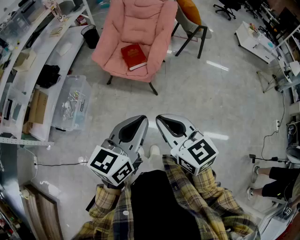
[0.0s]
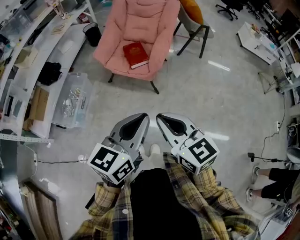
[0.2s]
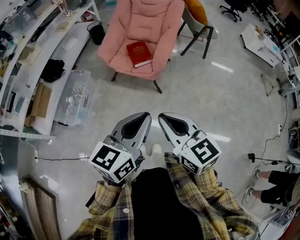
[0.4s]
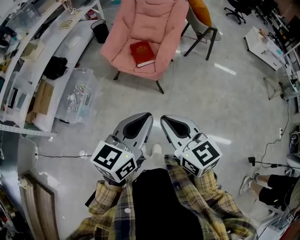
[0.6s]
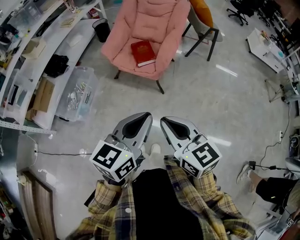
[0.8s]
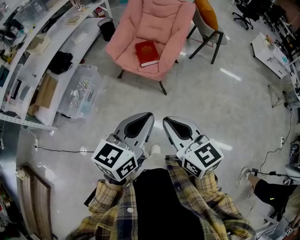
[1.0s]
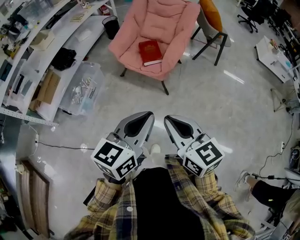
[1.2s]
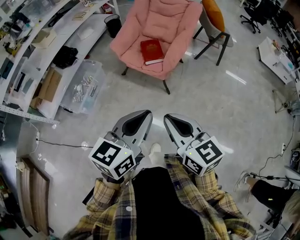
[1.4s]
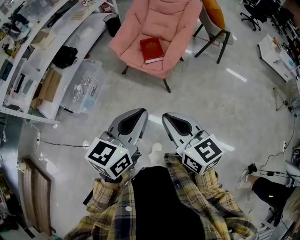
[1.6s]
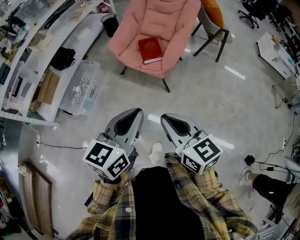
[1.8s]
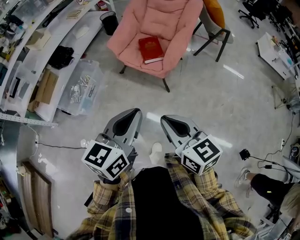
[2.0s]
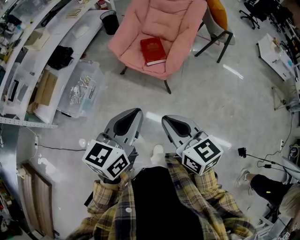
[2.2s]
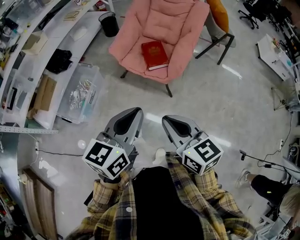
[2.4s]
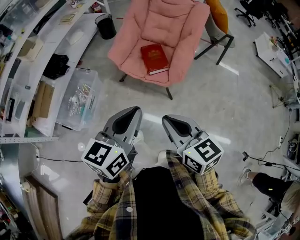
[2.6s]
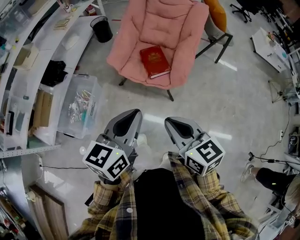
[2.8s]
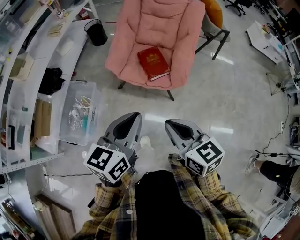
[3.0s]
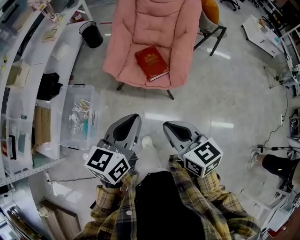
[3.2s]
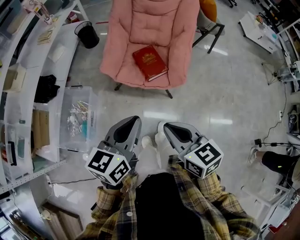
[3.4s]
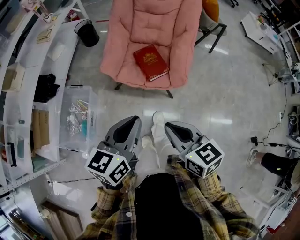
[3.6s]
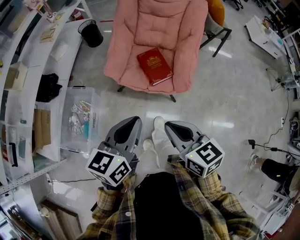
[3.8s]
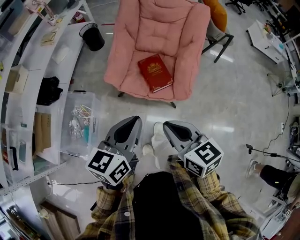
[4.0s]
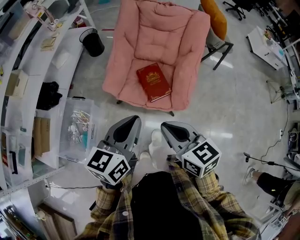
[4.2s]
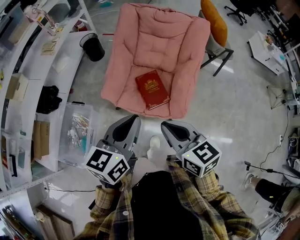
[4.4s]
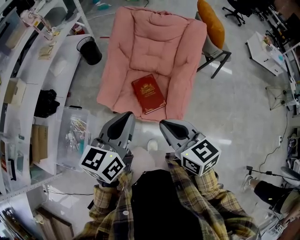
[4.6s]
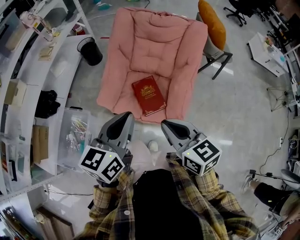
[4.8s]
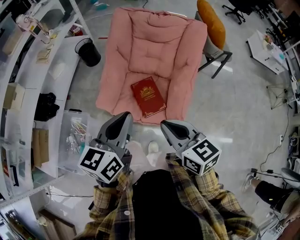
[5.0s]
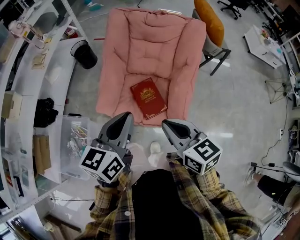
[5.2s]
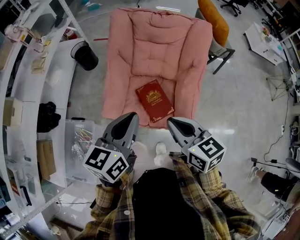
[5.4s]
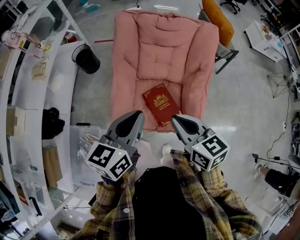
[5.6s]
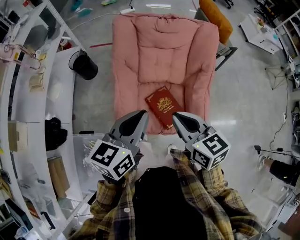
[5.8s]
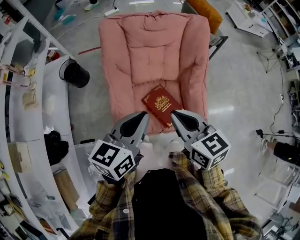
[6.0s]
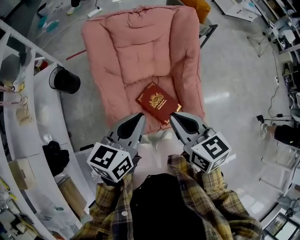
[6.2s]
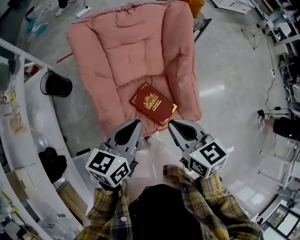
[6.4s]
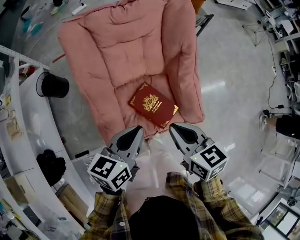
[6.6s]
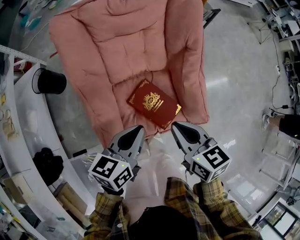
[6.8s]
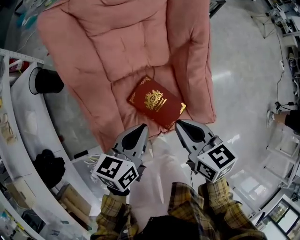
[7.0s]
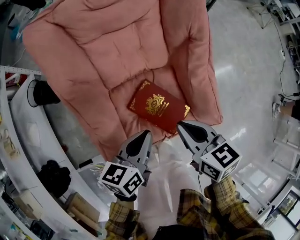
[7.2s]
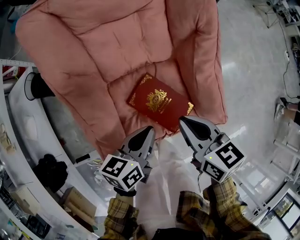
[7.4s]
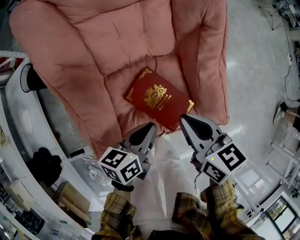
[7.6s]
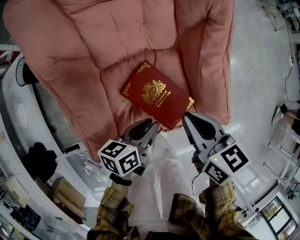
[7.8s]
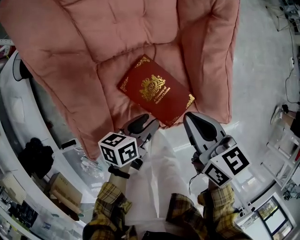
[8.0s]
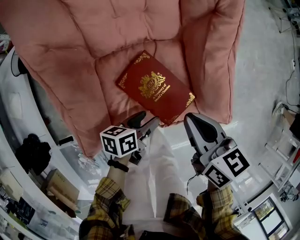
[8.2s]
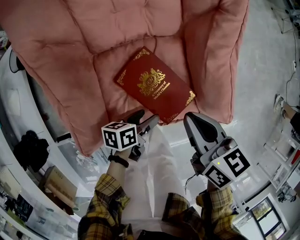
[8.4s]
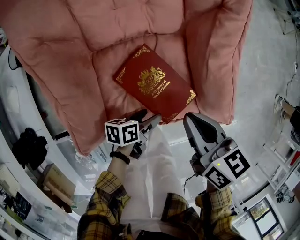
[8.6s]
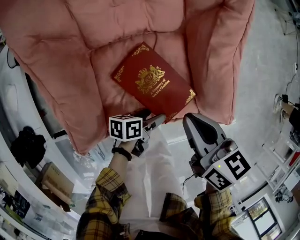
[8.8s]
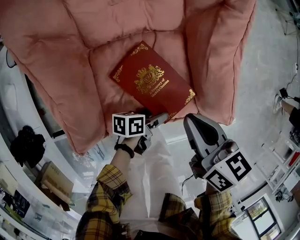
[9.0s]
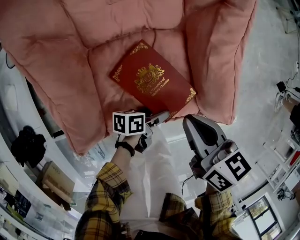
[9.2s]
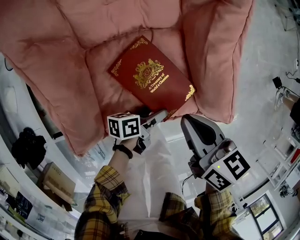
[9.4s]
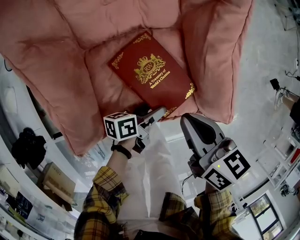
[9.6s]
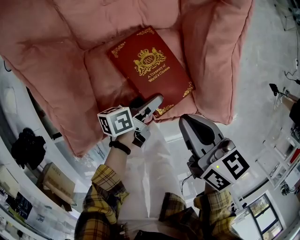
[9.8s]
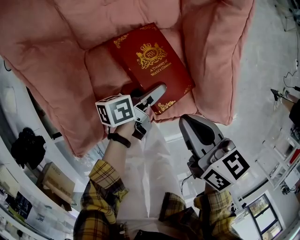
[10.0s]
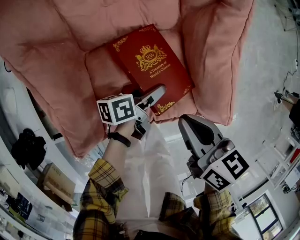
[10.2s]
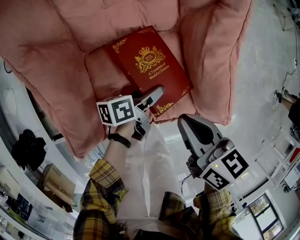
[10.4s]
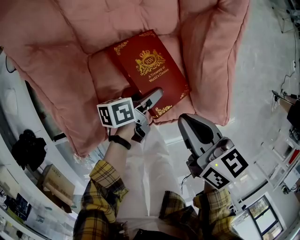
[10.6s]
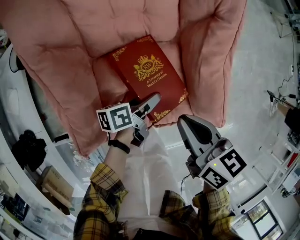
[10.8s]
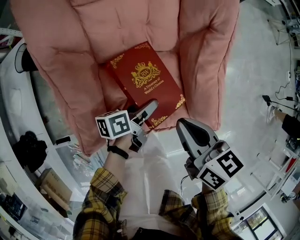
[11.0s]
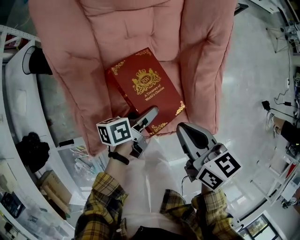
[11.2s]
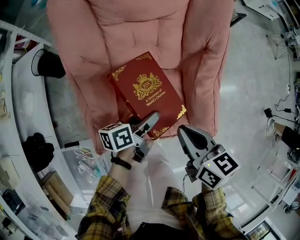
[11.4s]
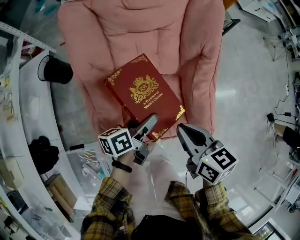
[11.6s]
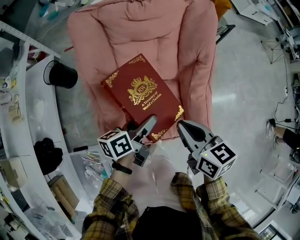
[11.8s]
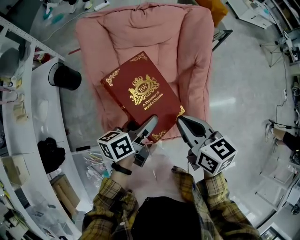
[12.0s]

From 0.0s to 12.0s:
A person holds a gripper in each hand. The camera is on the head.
From 0.0s to 1.6s: There are only small adjustments of the grippers.
From 1.6s to 3.0s: The two grippers go roughly 25 cm forward and to the left.
From 3.0s to 4.4s: Both grippers move forward, about 20 cm.
From 4.4s to 6.0s: The left gripper moves approximately 25 cm, and rotates some 30 degrees. Meanwhile the right gripper ends up about 25 cm from where it was, and turns by roughly 20 degrees.
From 6.0s to 7.6s: Both grippers travel together downward, some 30 cm. The right gripper rotates approximately 20 degrees, while the left gripper rotates approximately 30 degrees.
From 7.6s to 9.0s: The left gripper travels downward and to the right by approximately 20 cm, turns by roughly 30 degrees, and opens. The right gripper goes roughly 5 cm downward.
From 9.0s to 10.4s: The left gripper moves forward and upward, approximately 15 cm.
From 10.4s to 12.0s: The two grippers go some 25 cm upward. The left gripper turns by roughly 20 degrees.

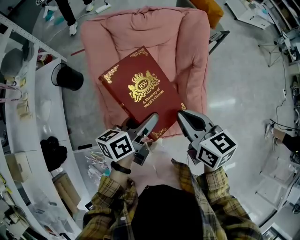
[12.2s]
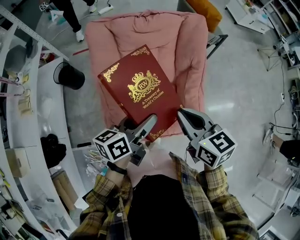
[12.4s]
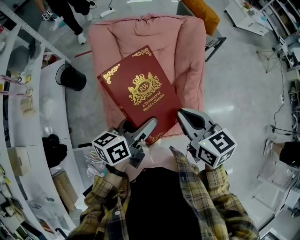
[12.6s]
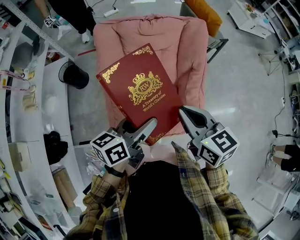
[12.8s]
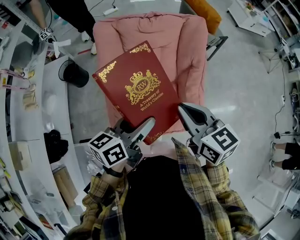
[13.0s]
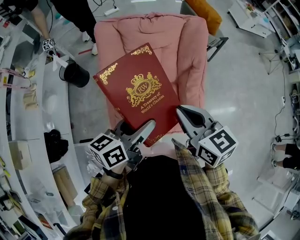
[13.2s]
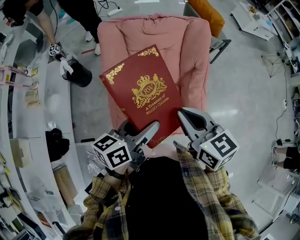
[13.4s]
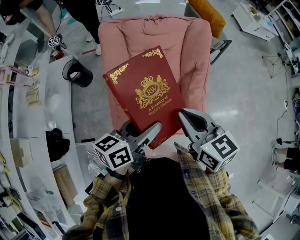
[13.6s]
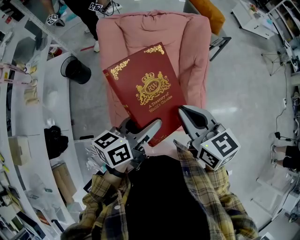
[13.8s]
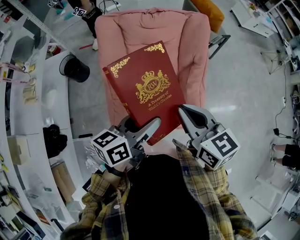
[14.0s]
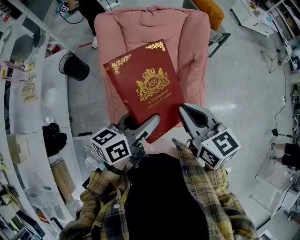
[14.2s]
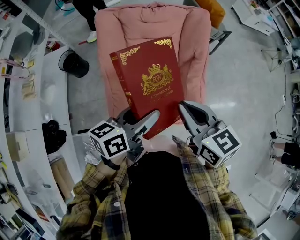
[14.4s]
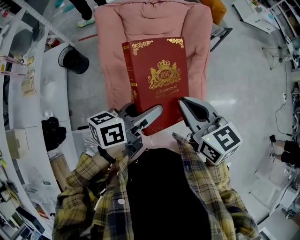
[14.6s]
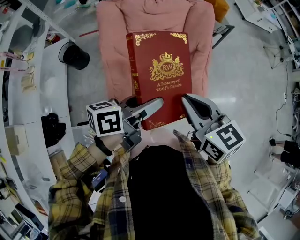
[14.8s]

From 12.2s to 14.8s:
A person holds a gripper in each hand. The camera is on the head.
From 12.2s to 13.4s: The left gripper travels upward and backward by some 10 cm, while the right gripper heads upward, covering about 10 cm.
From 13.4s to 14.8s: There are only small adjustments of the grippers.

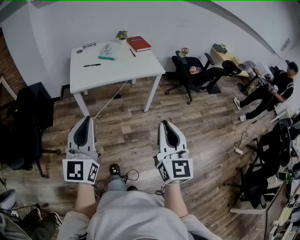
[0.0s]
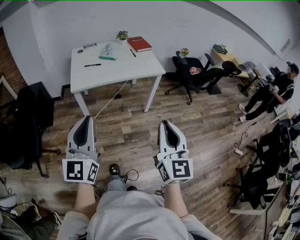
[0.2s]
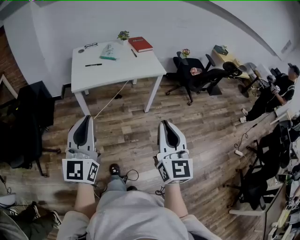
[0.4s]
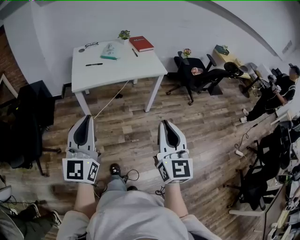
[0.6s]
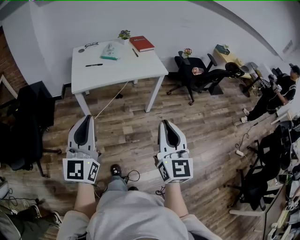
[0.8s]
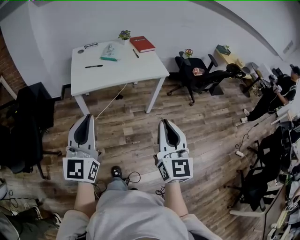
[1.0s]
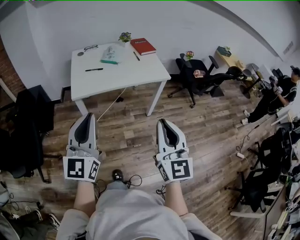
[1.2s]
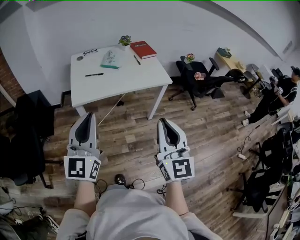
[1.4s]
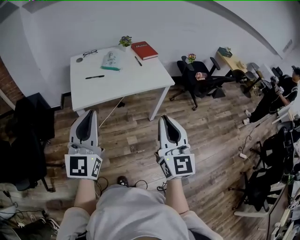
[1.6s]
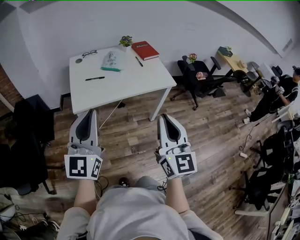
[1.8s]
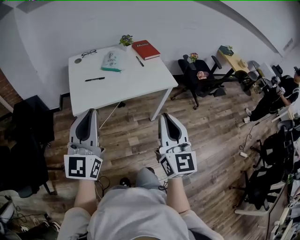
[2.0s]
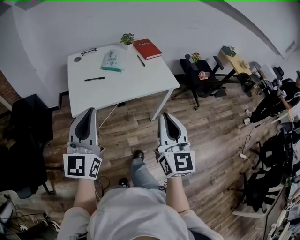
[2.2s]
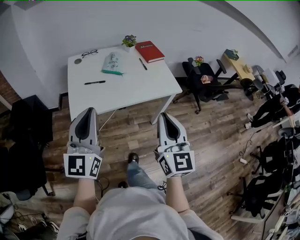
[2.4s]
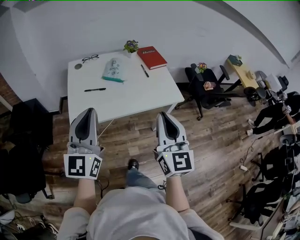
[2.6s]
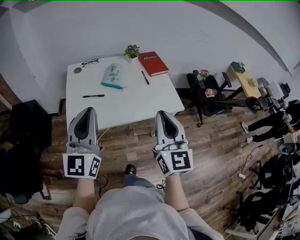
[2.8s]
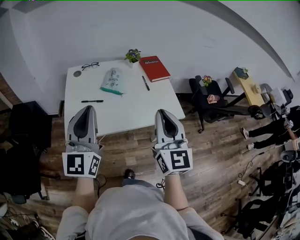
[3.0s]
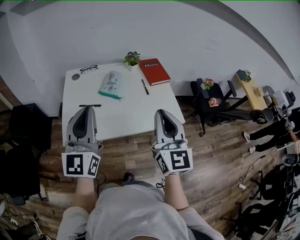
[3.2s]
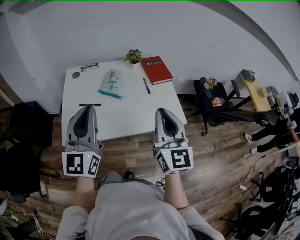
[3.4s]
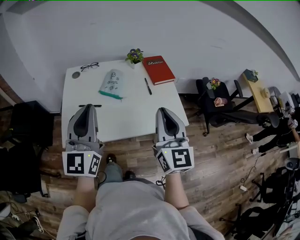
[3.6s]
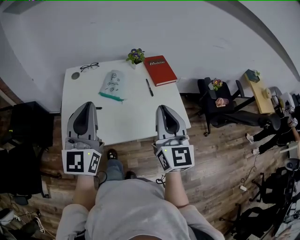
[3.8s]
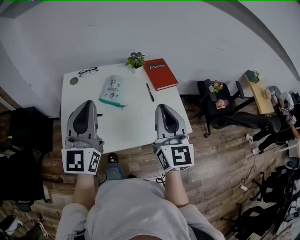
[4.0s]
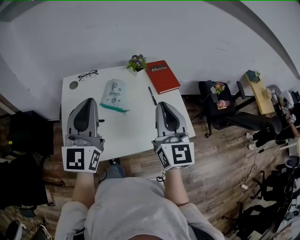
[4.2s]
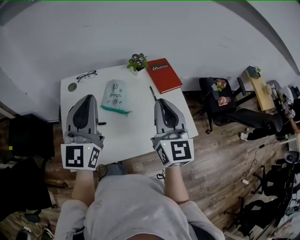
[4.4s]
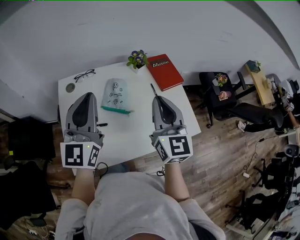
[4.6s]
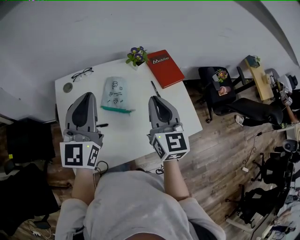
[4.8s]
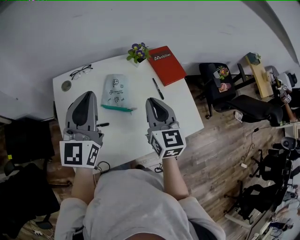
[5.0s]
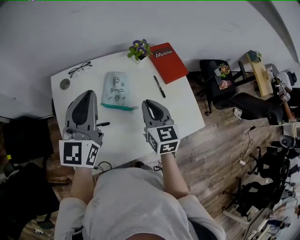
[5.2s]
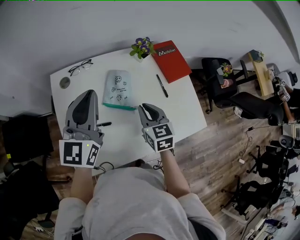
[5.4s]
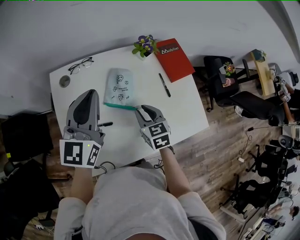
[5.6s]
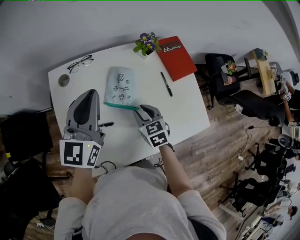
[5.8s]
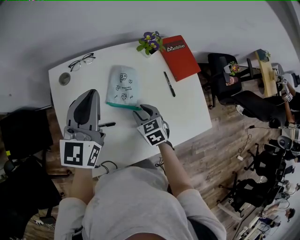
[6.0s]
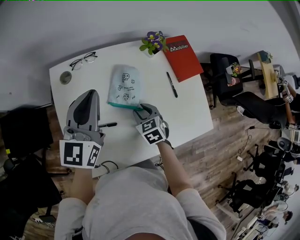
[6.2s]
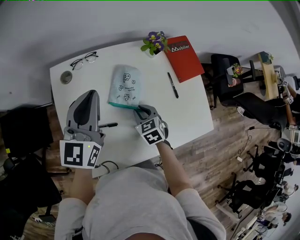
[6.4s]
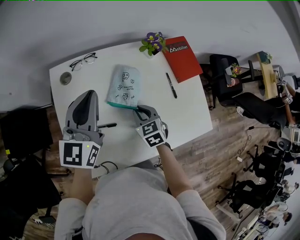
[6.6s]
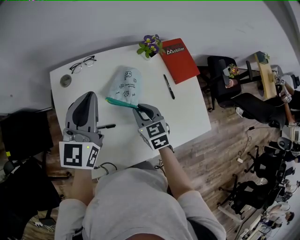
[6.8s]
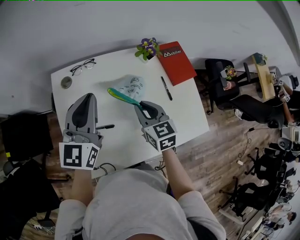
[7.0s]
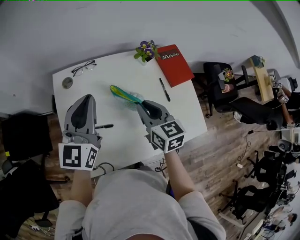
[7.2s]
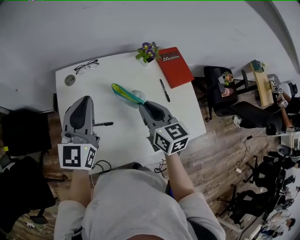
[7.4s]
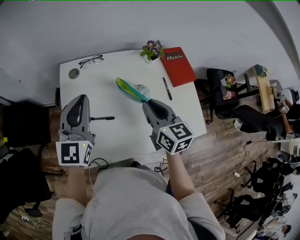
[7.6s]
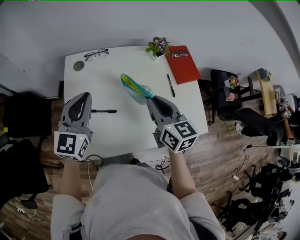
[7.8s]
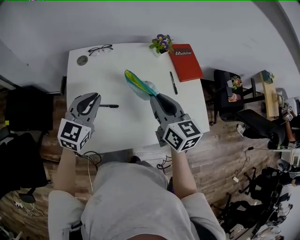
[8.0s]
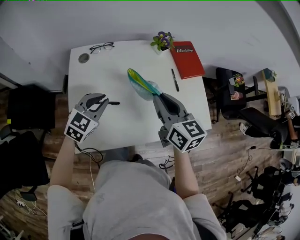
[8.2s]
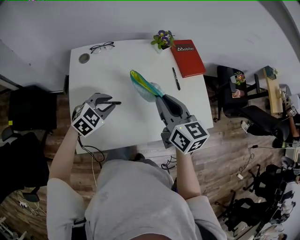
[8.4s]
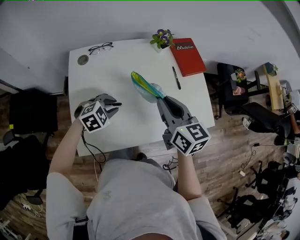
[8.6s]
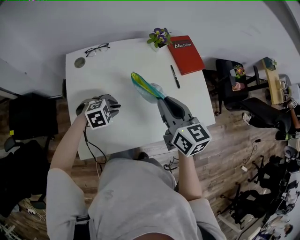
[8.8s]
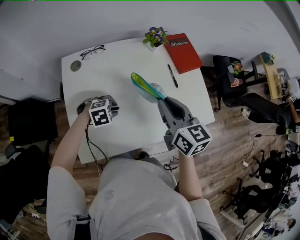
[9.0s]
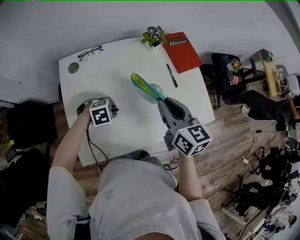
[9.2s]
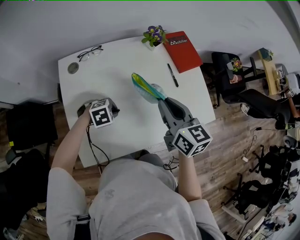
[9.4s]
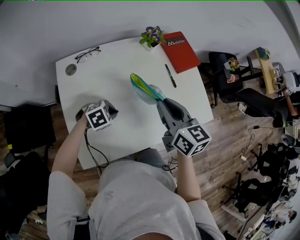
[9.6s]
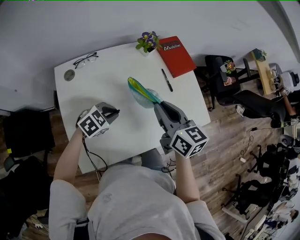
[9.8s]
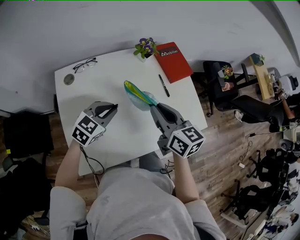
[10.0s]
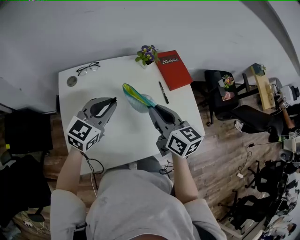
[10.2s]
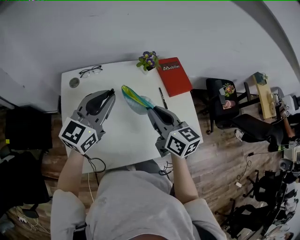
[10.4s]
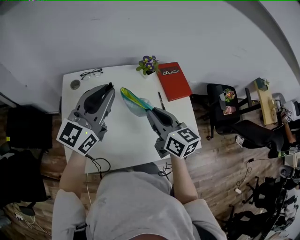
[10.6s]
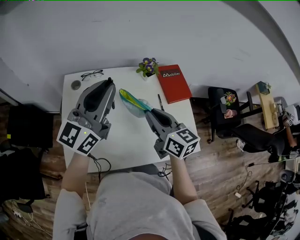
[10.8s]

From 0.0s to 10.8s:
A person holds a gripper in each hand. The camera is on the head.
From 0.0s to 1.6s: The right gripper is displaced forward and to the left by approximately 15 cm. The left gripper moves forward, roughly 15 cm.
From 1.6s to 3.0s: Both grippers move forward, roughly 30 cm.
From 3.0s to 4.6s: The grippers both shift forward by roughly 30 cm.
From 4.6s to 6.2s: The left gripper is displaced downward, forward and to the left by some 15 cm, while the right gripper heads downward, covering about 30 cm, tilts its fingers some 50 degrees downward, and opens its fingers.
From 6.2s to 7.8s: The left gripper moves backward, roughly 10 cm. Meanwhile the right gripper moves upward, roughly 20 cm, and points its fingers about 30 degrees further upward.
From 7.8s to 9.2s: The left gripper shifts approximately 25 cm downward, tips its fingers downward by roughly 60 degrees, and opens.
From 9.2s to 10.8s: The right gripper shifts by roughly 5 cm, while the left gripper moves upward, roughly 40 cm, and tips its fingers upward by some 80 degrees.
